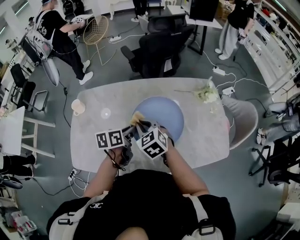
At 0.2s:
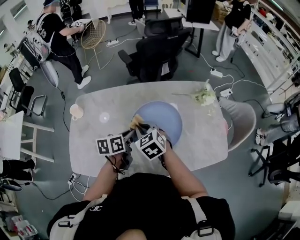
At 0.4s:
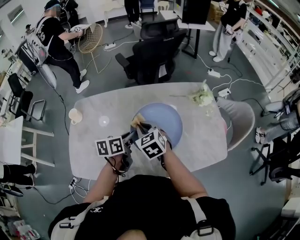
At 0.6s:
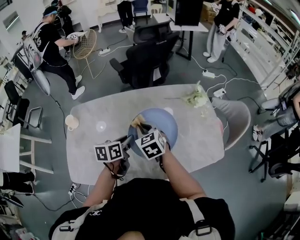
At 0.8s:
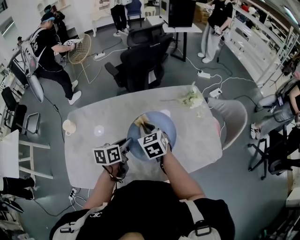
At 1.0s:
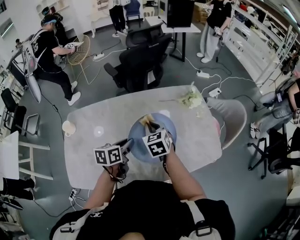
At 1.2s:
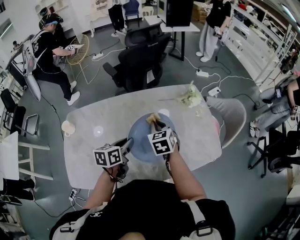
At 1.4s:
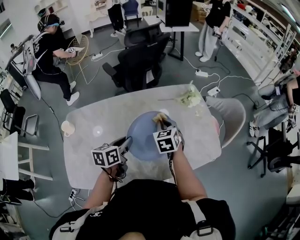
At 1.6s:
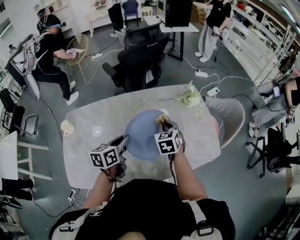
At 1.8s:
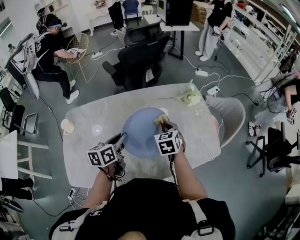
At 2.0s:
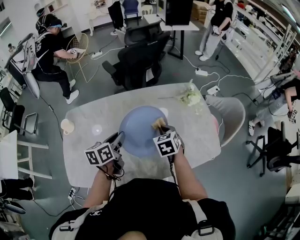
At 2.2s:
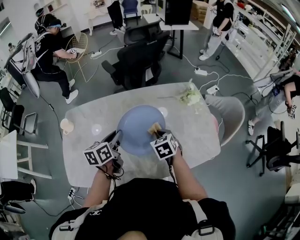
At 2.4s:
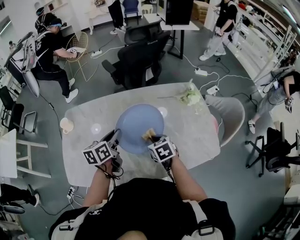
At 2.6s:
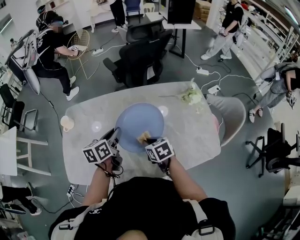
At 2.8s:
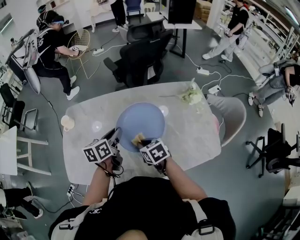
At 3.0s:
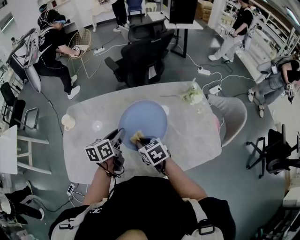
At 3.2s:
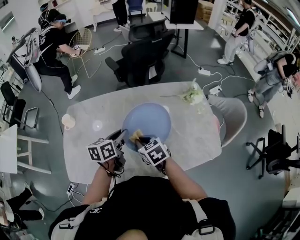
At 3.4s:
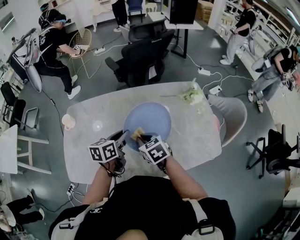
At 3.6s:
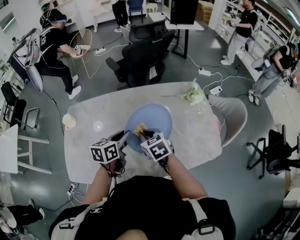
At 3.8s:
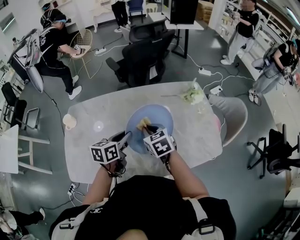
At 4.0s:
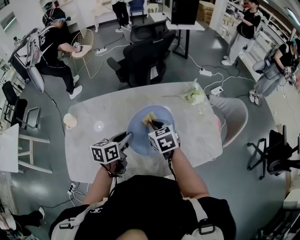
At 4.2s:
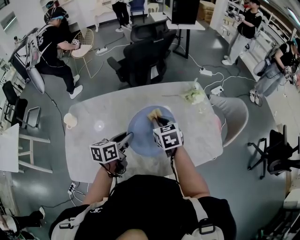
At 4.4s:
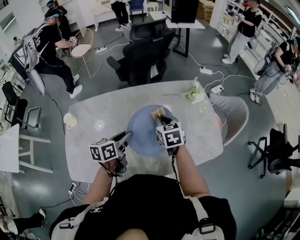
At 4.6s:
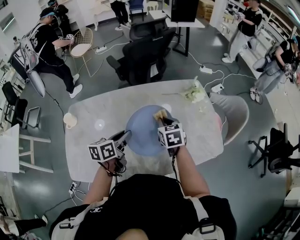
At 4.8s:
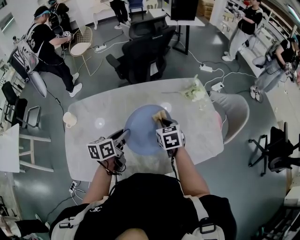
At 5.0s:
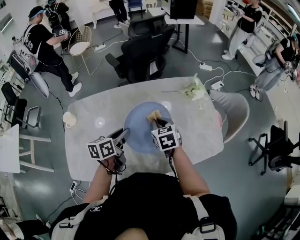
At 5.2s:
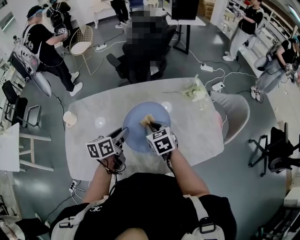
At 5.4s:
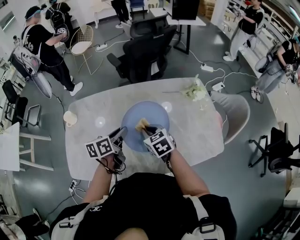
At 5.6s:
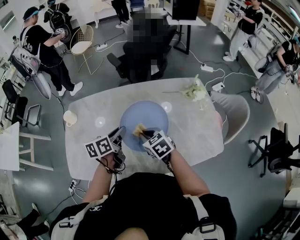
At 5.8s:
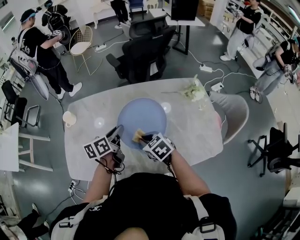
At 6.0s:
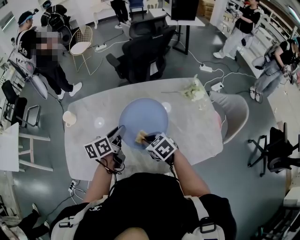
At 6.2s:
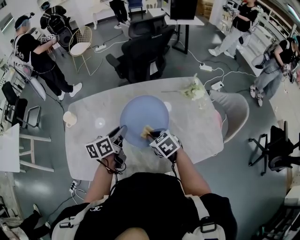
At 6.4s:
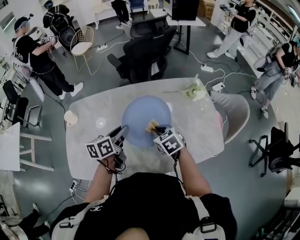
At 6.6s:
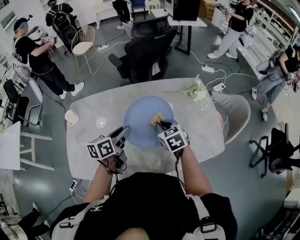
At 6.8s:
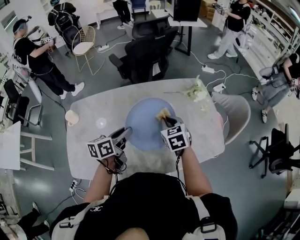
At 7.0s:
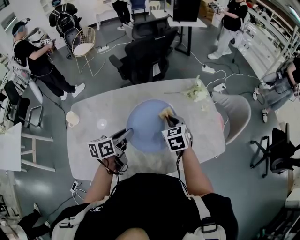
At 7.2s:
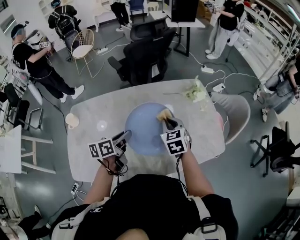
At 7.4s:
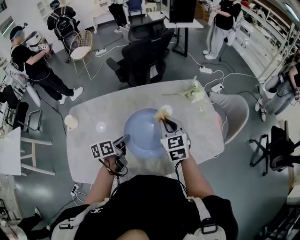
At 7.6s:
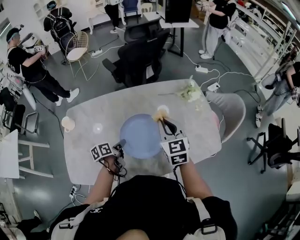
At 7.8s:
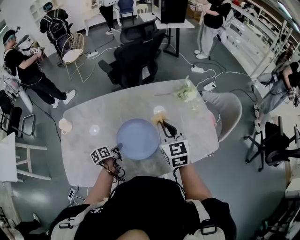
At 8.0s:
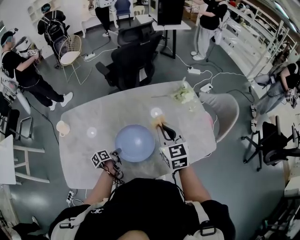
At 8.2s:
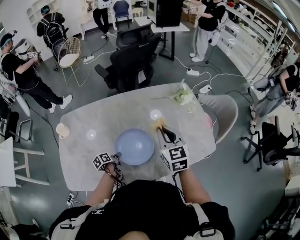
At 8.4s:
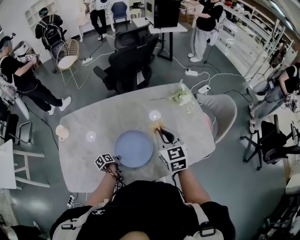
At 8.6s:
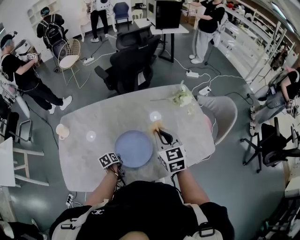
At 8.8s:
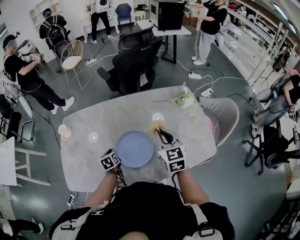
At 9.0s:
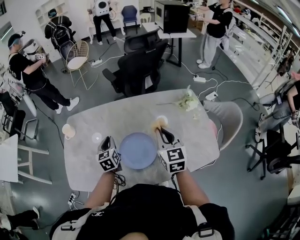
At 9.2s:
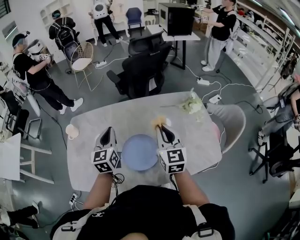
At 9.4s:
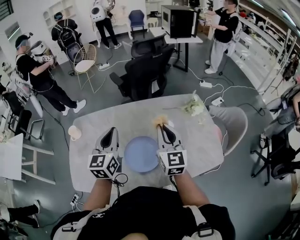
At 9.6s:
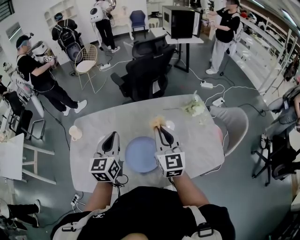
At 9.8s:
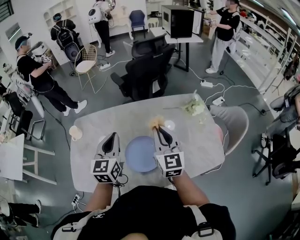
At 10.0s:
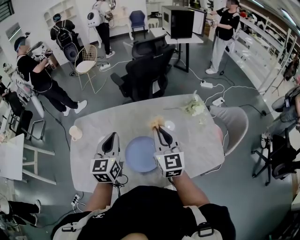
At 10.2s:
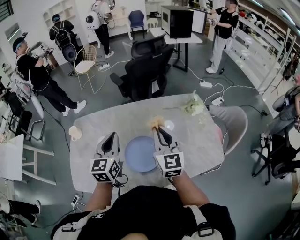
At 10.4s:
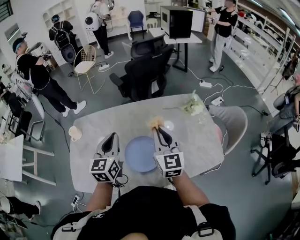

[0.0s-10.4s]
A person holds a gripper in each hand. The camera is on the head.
0.0s to 1.4s: The right gripper is displaced to the right and forward by some 20 cm, and swivels some 30 degrees.
1.4s to 3.0s: The right gripper moves some 15 cm, and swivels some 30 degrees.
3.0s to 4.4s: The right gripper travels to the right and forward by roughly 15 cm, and changes its angle by about 20 degrees.
4.4s to 6.0s: The right gripper goes approximately 15 cm backward, to the left and downward, and rotates roughly 30 degrees.
6.0s to 7.4s: The right gripper shifts by approximately 15 cm, and swivels some 40 degrees. The left gripper shifts approximately 5 cm downward.
7.4s to 9.0s: The left gripper travels to the left by approximately 10 cm, reaches about 25 cm downward, then returns, and swivels about 50 degrees.
9.0s to 10.4s: The left gripper moves upward, approximately 15 cm, and swivels about 20 degrees. The right gripper travels upward by some 5 cm.

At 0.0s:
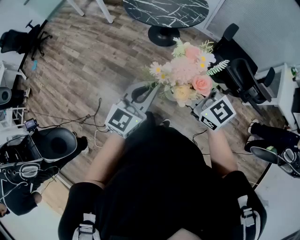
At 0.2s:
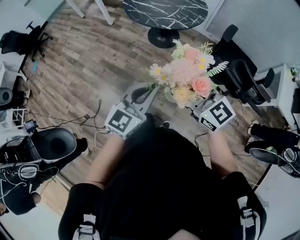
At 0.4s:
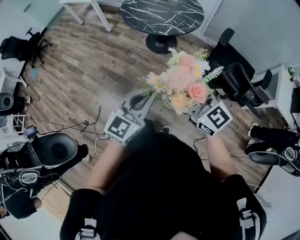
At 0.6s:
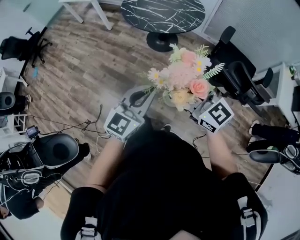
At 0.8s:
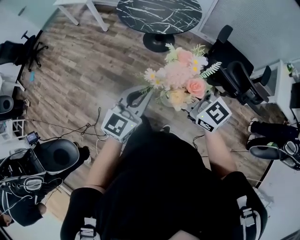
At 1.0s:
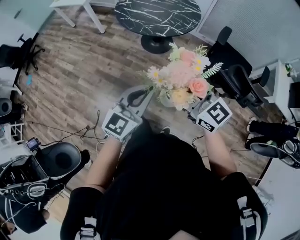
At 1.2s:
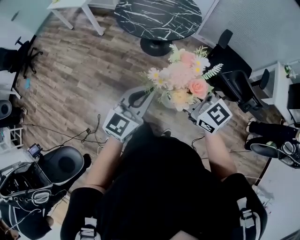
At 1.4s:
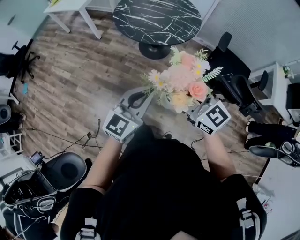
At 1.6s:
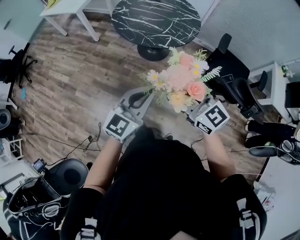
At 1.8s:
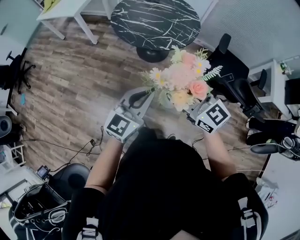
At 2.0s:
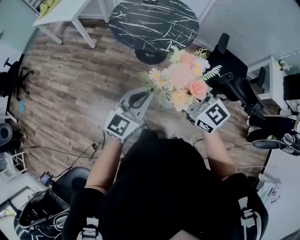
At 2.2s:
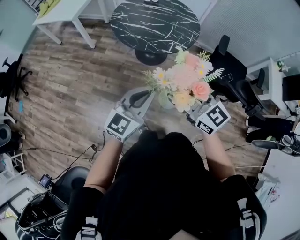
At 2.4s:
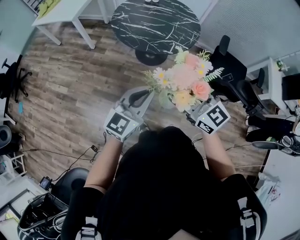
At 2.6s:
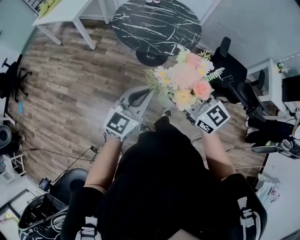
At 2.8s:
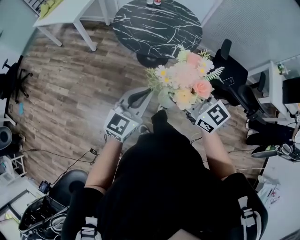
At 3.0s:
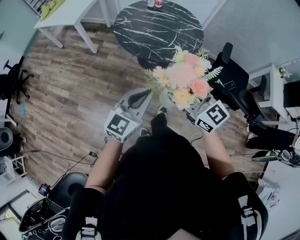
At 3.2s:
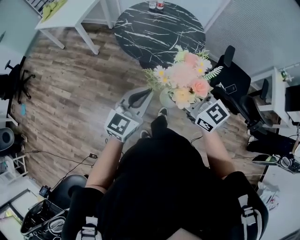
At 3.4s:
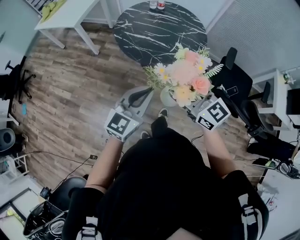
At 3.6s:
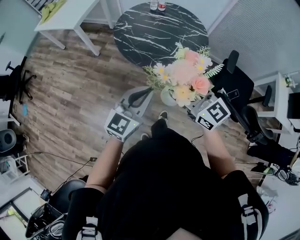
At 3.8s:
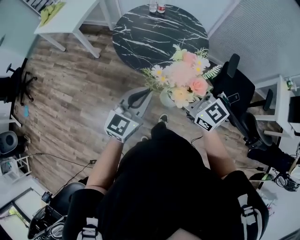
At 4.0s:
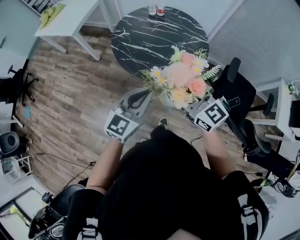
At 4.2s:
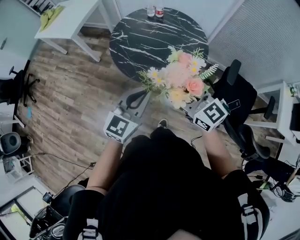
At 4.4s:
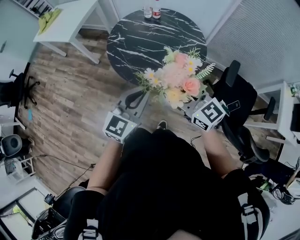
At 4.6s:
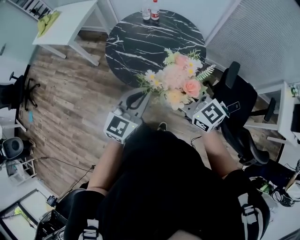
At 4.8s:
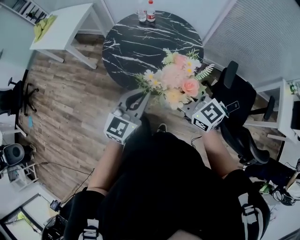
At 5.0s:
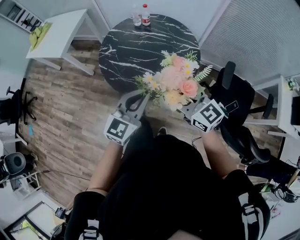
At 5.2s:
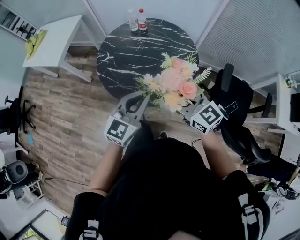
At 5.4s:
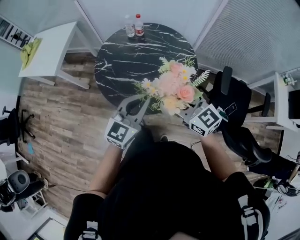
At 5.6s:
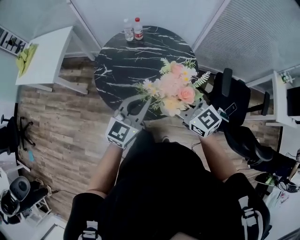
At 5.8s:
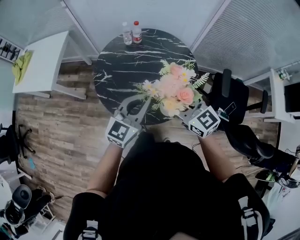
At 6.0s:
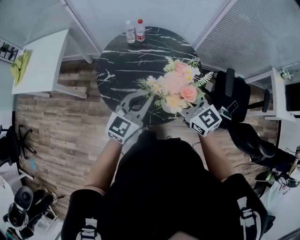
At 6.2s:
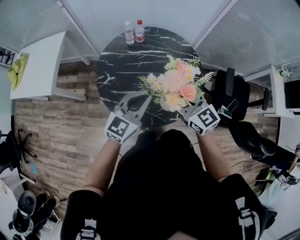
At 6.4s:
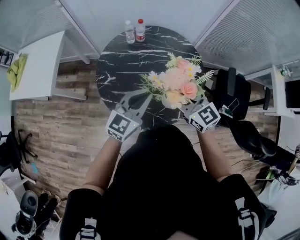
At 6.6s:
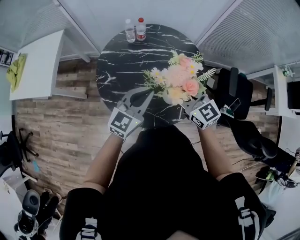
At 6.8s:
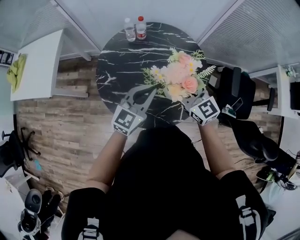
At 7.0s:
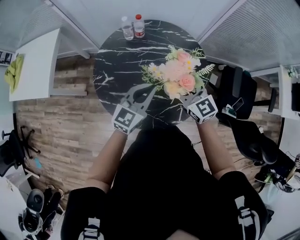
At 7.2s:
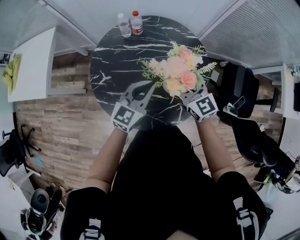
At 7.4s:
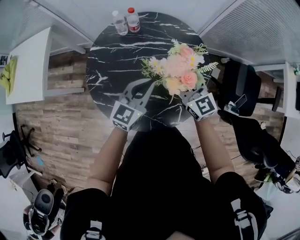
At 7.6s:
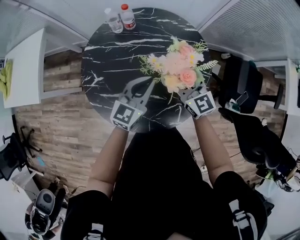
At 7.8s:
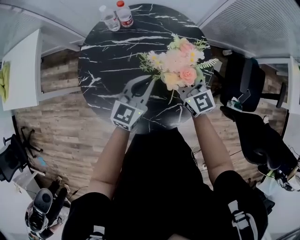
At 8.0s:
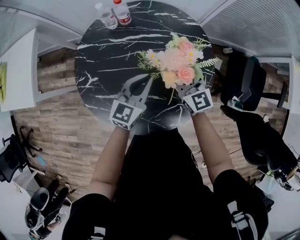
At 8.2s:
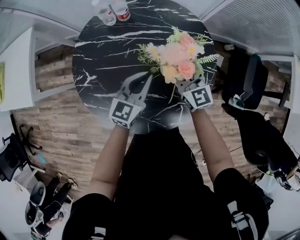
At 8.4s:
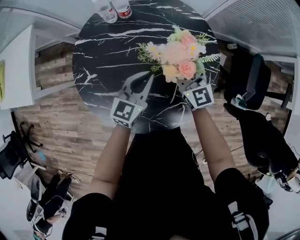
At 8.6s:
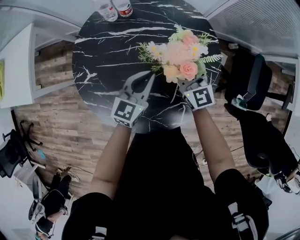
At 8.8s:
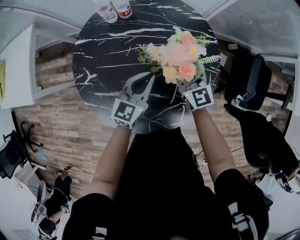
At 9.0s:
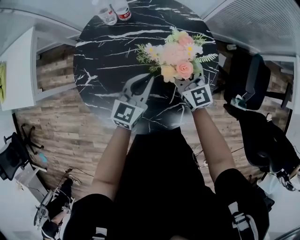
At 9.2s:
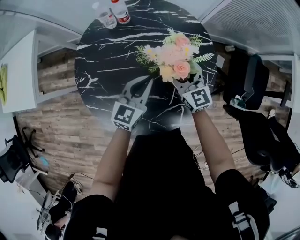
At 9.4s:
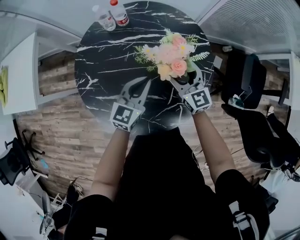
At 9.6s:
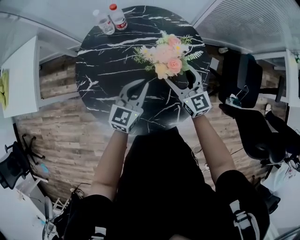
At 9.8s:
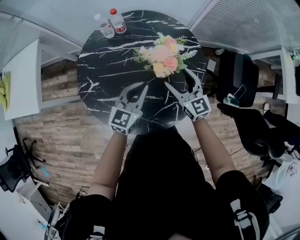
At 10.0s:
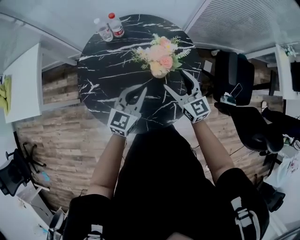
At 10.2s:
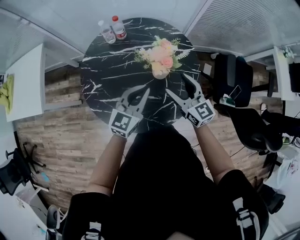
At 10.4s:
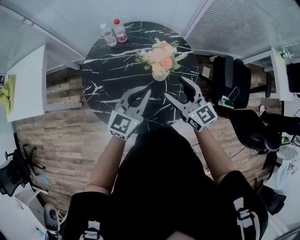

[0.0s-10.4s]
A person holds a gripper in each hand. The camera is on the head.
0.0s to 1.4s: Both grippers move forward and to the left, roughly 15 cm.
1.4s to 3.0s: Both grippers move forward and to the left, roughly 20 cm.
3.0s to 4.4s: The two grippers go some 25 cm forward and to the right.
4.4s to 6.0s: The two grippers go some 25 cm forward. The right gripper changes its angle by about 20 degrees, while the left gripper rotates some 20 degrees.
6.0s to 7.4s: The two grippers go some 20 cm forward and downward.
7.4s to 9.0s: The left gripper shifts roughly 10 cm downward. The right gripper shifts about 15 cm downward and forward.
9.0s to 10.4s: The grippers both shift upward and backward by roughly 20 cm.

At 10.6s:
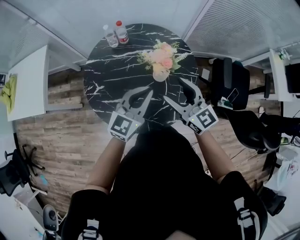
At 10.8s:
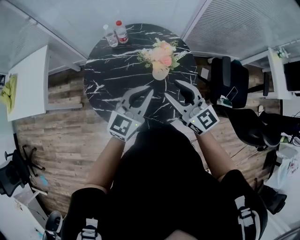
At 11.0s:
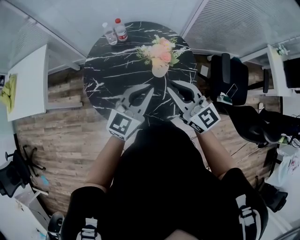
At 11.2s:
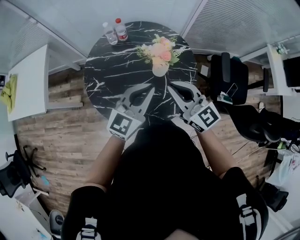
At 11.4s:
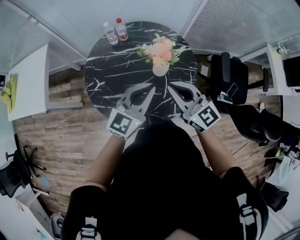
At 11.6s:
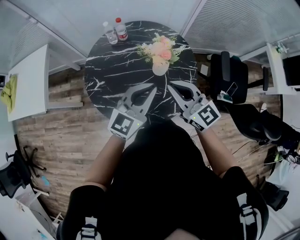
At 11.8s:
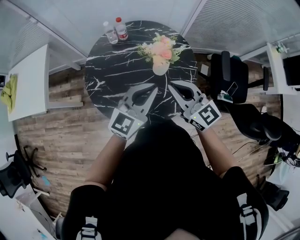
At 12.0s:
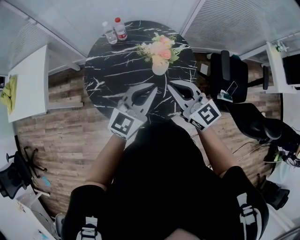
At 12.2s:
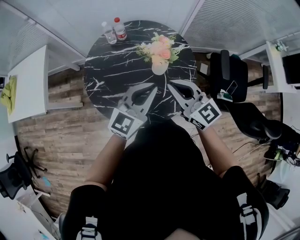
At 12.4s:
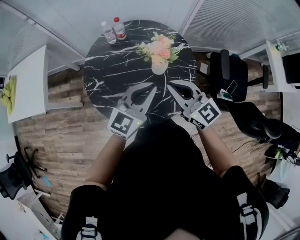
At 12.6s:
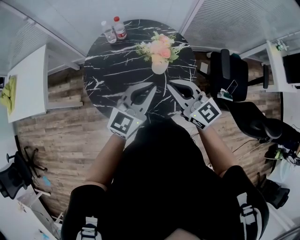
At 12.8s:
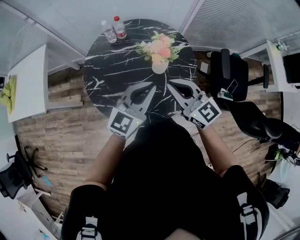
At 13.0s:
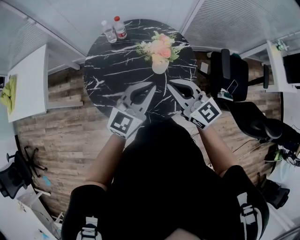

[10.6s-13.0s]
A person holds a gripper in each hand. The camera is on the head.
10.6s to 11.8s: The left gripper shifts by approximately 5 cm. The right gripper changes place by some 5 cm, and closes up.
11.8s to 13.0s: The two grippers keep their place.
